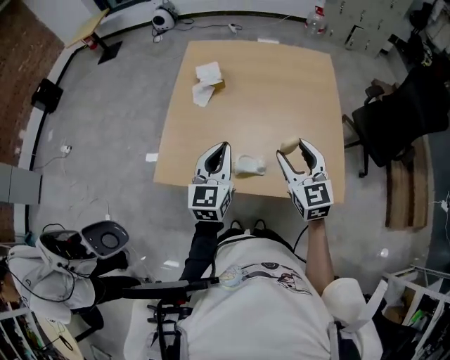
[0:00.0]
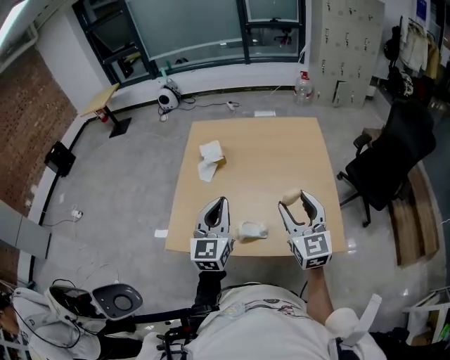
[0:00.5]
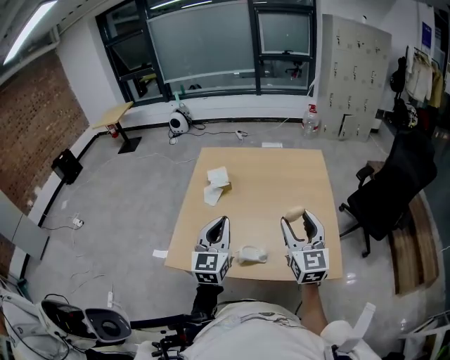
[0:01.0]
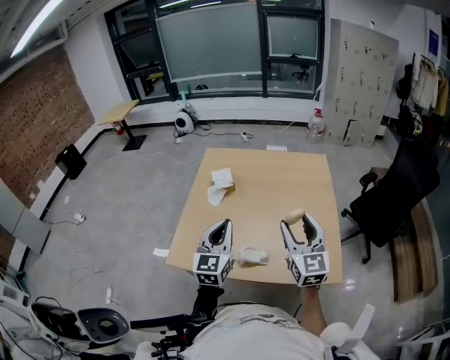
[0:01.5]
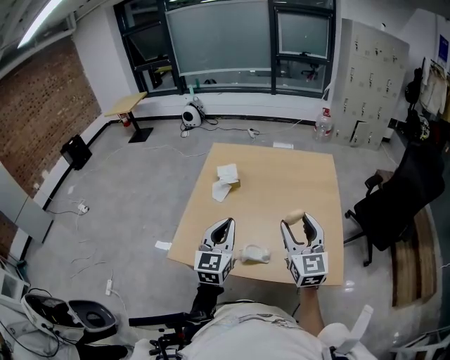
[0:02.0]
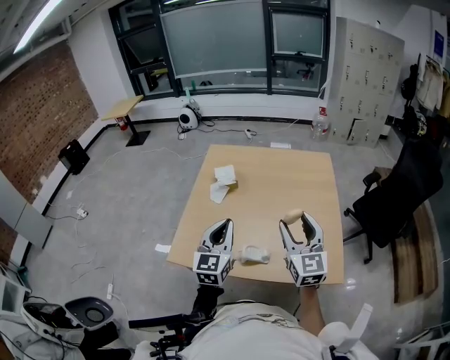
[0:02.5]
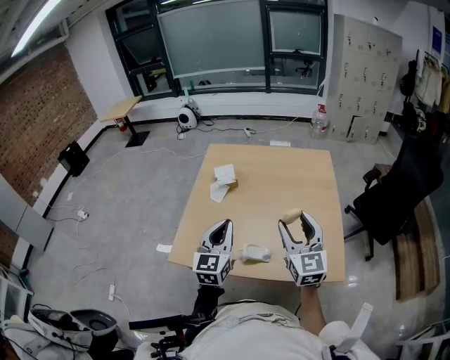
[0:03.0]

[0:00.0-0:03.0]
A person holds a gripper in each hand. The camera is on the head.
0:00.0 to 0:01.5: The left gripper moves upward, about 5 cm; the right gripper is displaced upward by some 10 cm.
0:01.5 to 0:03.0: The grippers make only small movements.

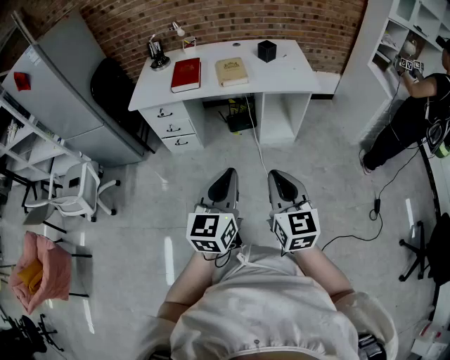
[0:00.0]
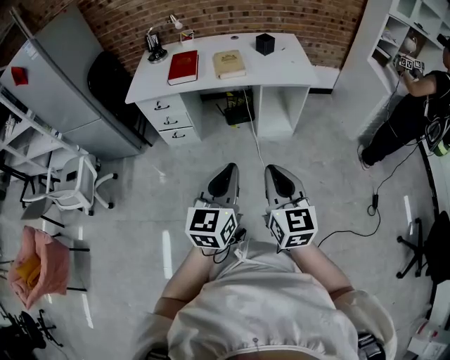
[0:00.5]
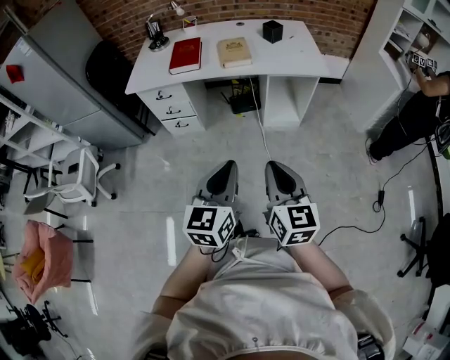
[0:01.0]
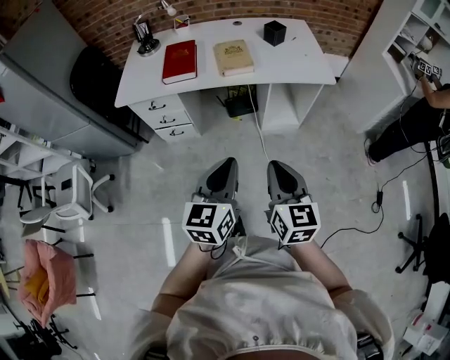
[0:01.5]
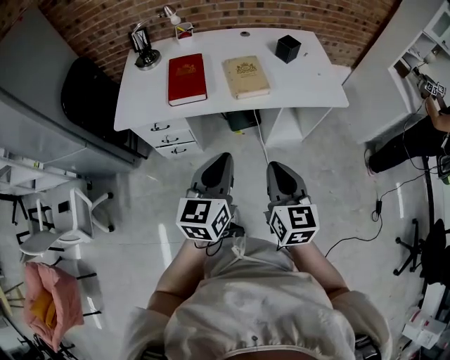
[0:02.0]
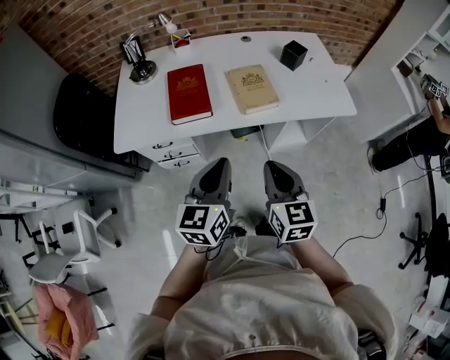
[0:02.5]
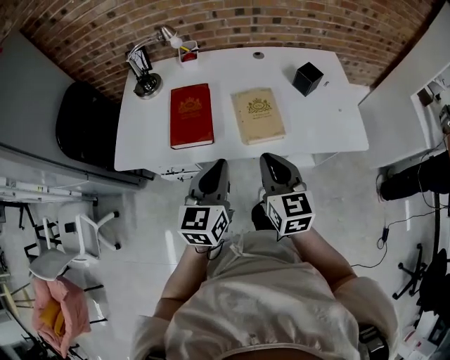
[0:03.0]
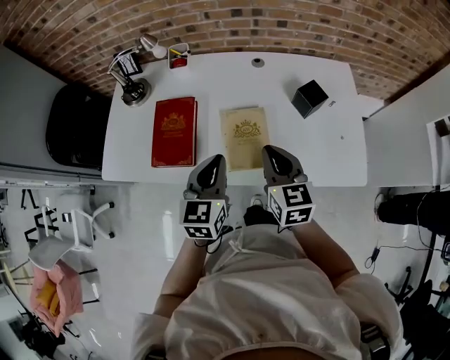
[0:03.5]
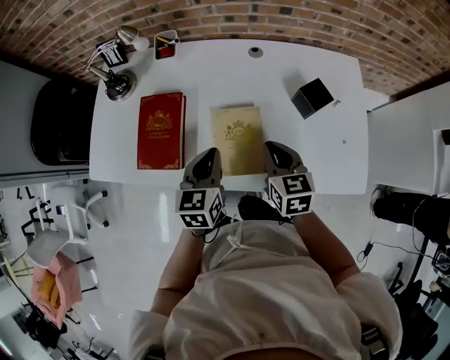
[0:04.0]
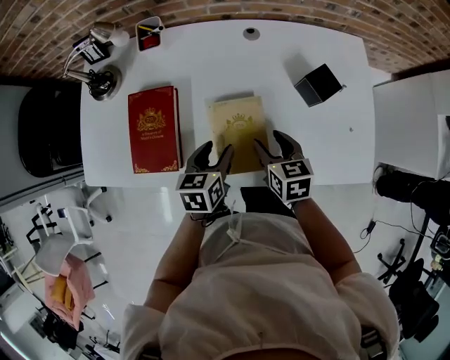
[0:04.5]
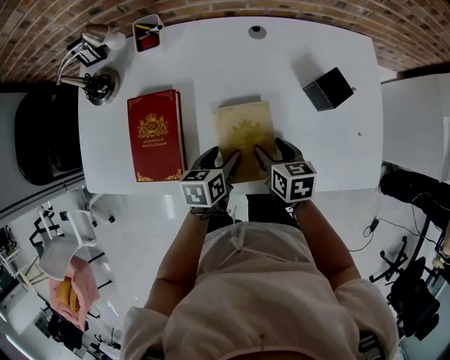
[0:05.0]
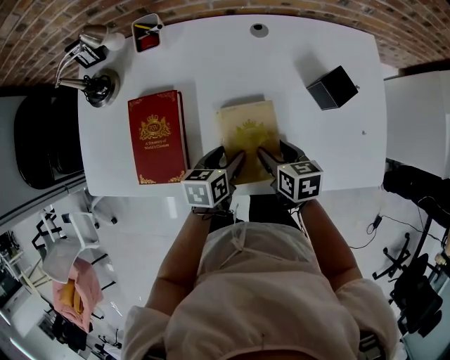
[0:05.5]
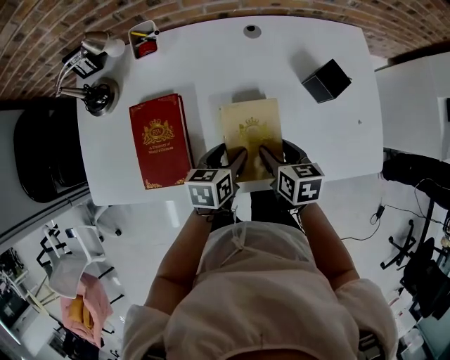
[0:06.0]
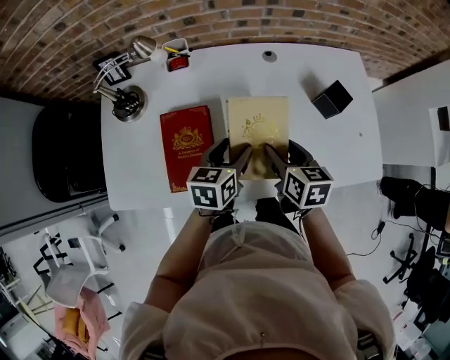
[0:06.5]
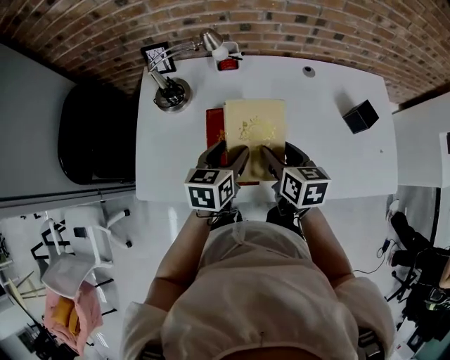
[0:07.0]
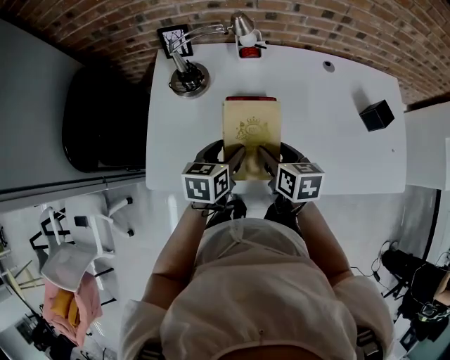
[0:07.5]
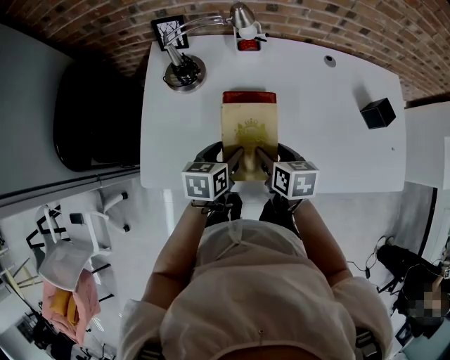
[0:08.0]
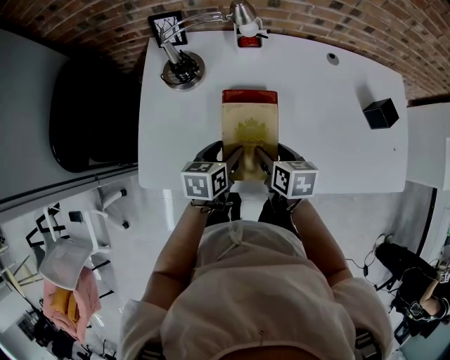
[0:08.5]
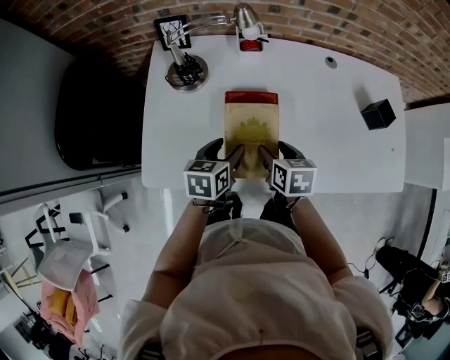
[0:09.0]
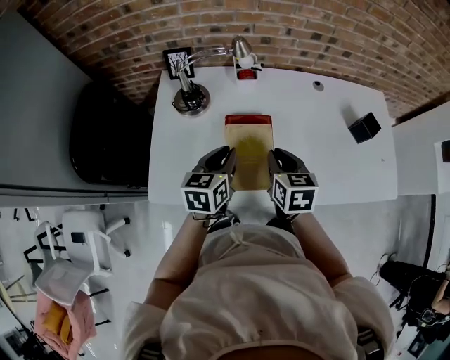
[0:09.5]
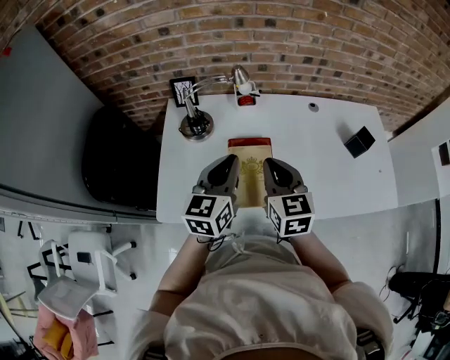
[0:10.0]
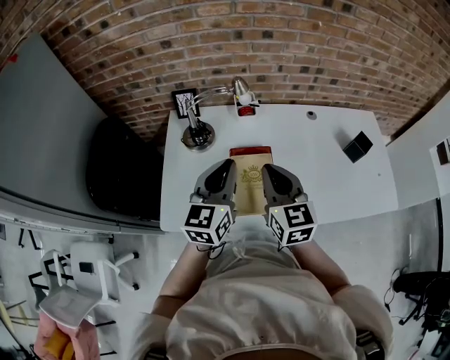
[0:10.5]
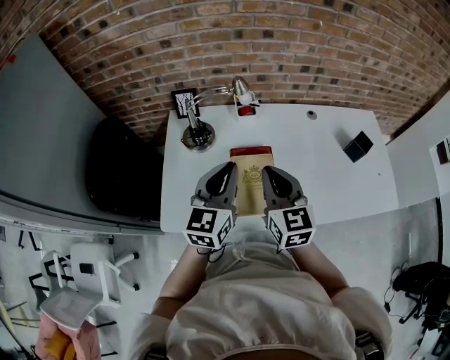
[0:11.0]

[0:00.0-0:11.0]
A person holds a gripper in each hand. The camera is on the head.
0:00.0 to 0:02.0: Both grippers move forward and to the left, roughly 30 cm.
0:02.0 to 0:03.5: Both grippers travel together forward, roughly 40 cm.
0:03.5 to 0:05.5: The two grippers go roughly 20 cm downward. The left gripper turns by roughly 40 degrees, and opens up. The right gripper rotates about 40 degrees, and opens.
0:05.5 to 0:07.5: The grippers both shift to the left by roughly 30 cm.
0:07.5 to 0:09.0: The grippers move only a little.
0:09.0 to 0:11.0: The grippers both shift upward by some 20 cm. The right gripper angles its fingers upward, by approximately 40 degrees, and closes its fingers; the left gripper tips its fingers upward by roughly 30 degrees, and closes up.

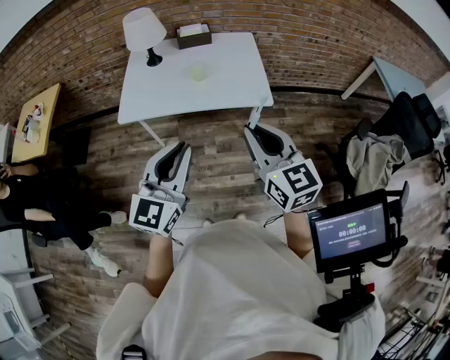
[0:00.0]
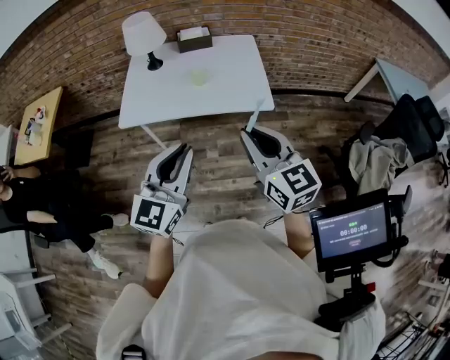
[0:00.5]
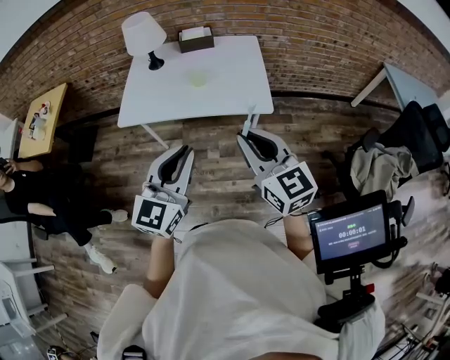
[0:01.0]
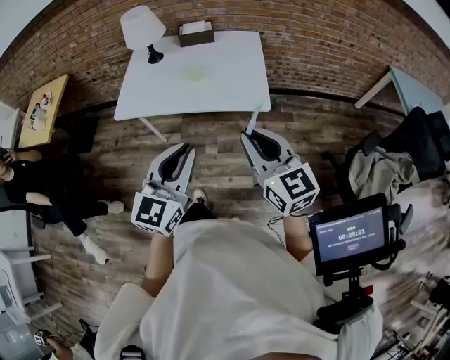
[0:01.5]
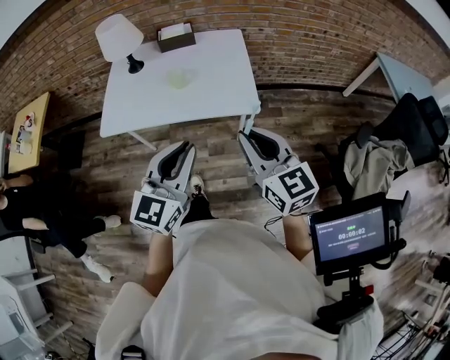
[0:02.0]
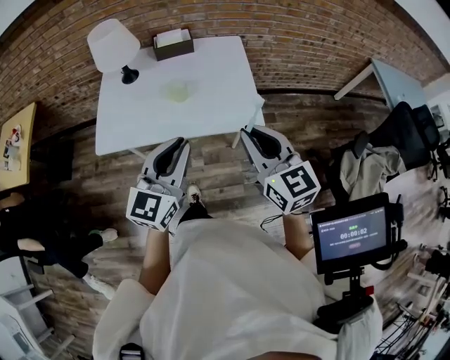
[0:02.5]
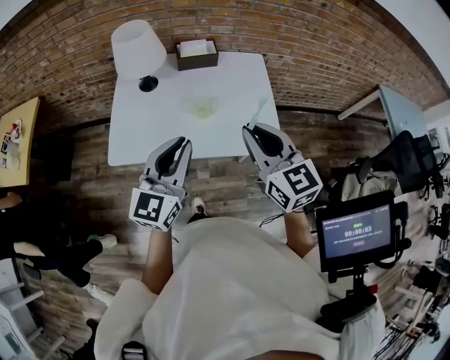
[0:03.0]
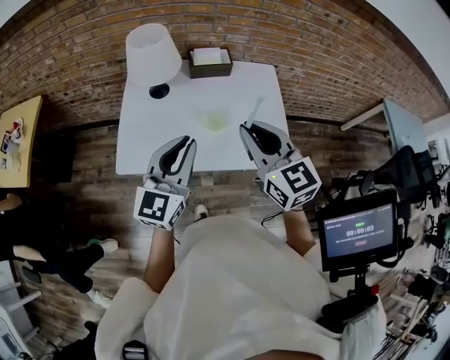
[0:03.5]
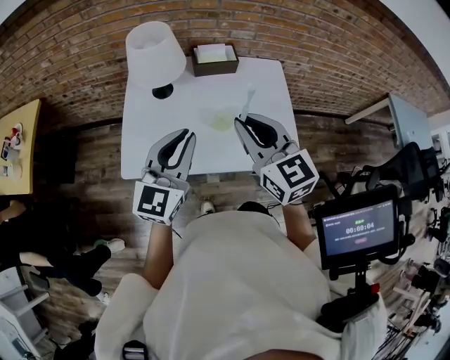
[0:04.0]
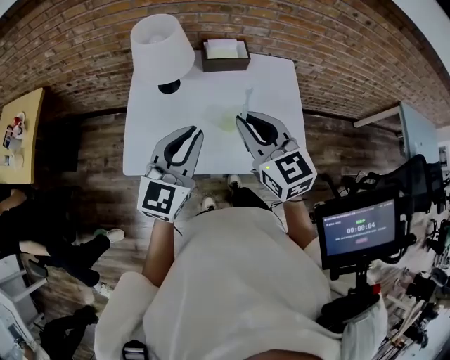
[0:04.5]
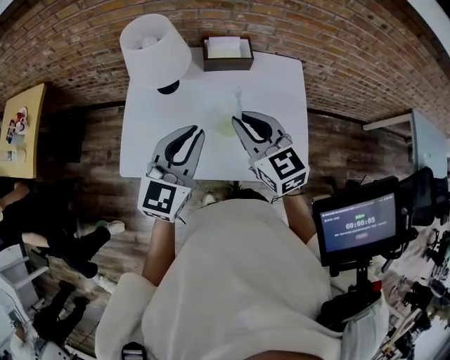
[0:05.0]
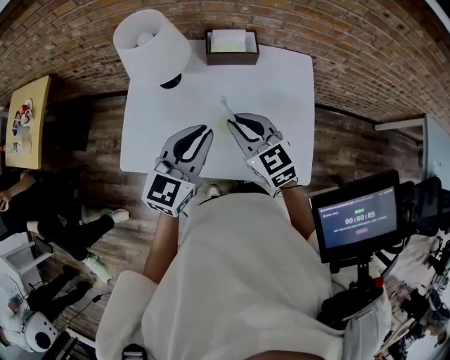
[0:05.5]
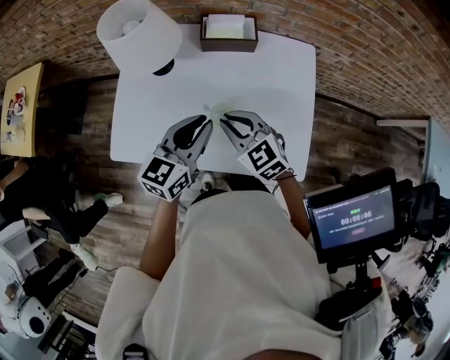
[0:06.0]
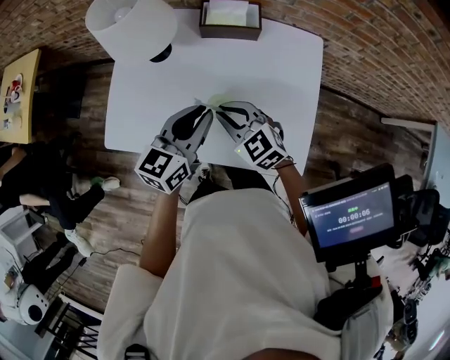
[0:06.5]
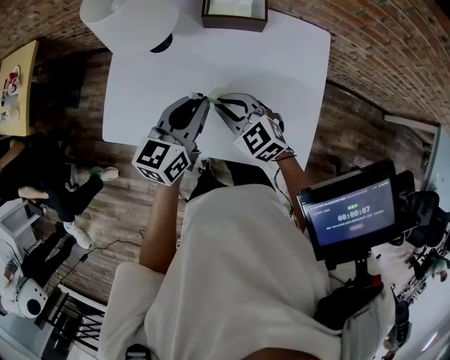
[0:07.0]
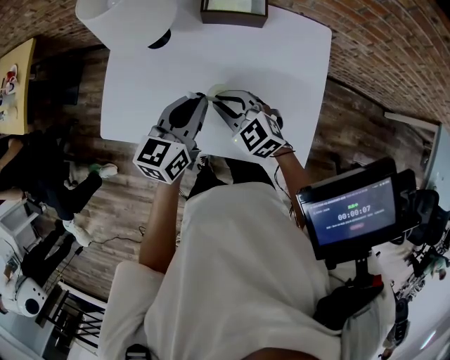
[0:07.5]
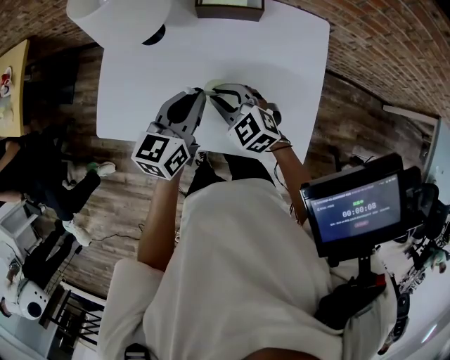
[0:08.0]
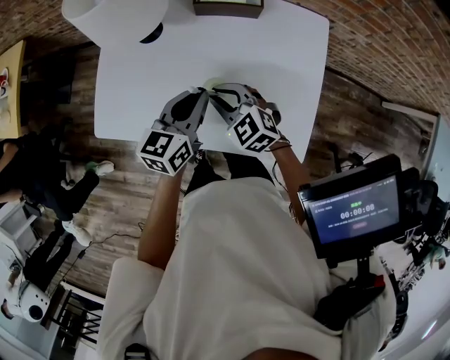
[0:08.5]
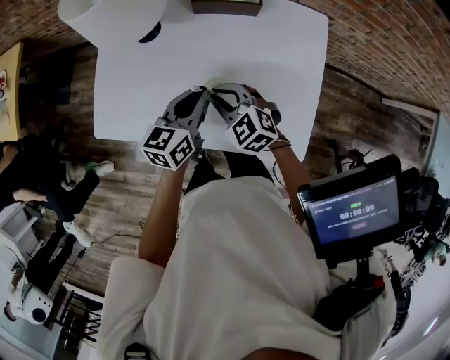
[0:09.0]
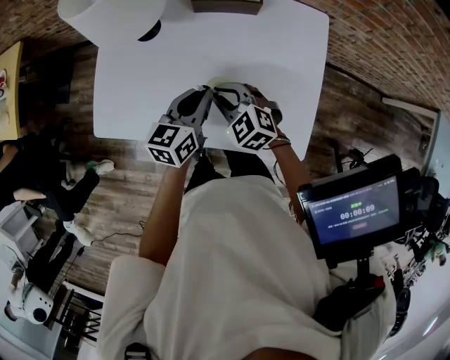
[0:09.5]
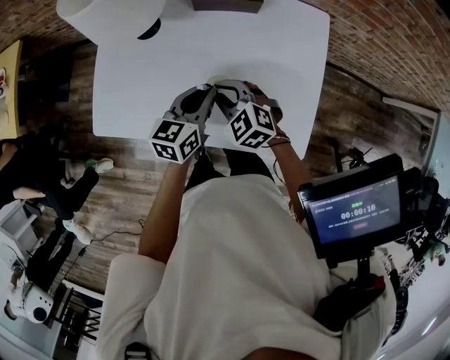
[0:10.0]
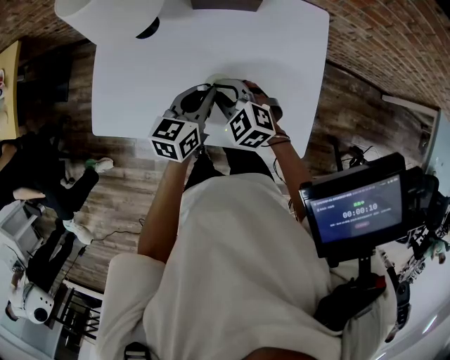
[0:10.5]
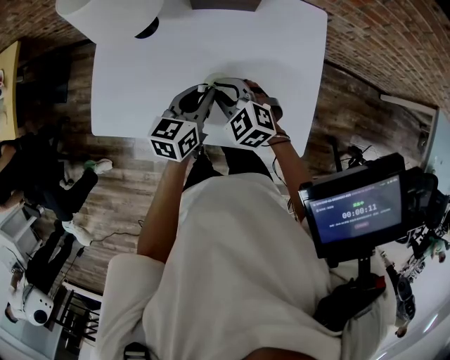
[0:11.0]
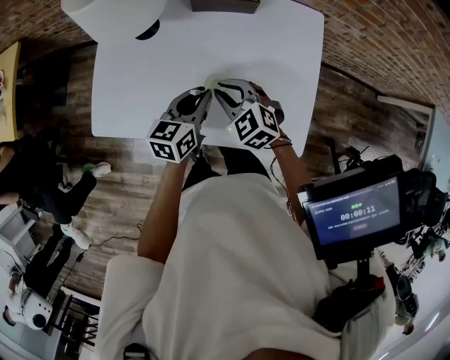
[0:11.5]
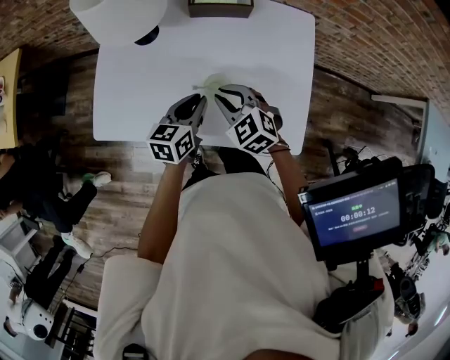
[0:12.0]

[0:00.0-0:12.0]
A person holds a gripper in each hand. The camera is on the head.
0:00.0 to 0:02.0: The grippers both shift to the right and forward by about 15 cm.
0:02.0 to 0:04.0: Both grippers travel together forward and to the left, some 35 cm.
0:04.0 to 0:06.0: The left gripper moves downward, to the right and forward, roughly 20 cm, and rotates approximately 20 degrees, while the right gripper shifts approximately 20 cm downward and forward, and changes its angle by roughly 30 degrees.
0:06.0 to 0:08.0: The grippers both shift downward by some 5 cm.
0:08.0 to 0:10.0: The left gripper moves downward, some 5 cm.
0:10.0 to 0:12.0: The grippers make only small movements.

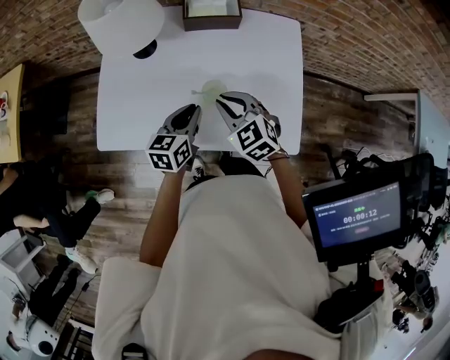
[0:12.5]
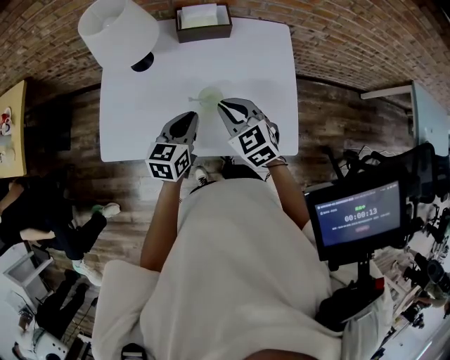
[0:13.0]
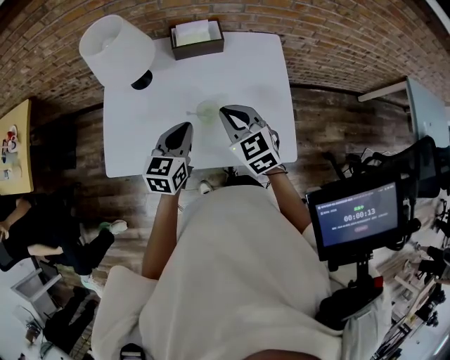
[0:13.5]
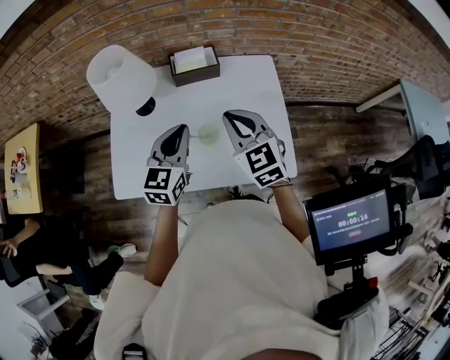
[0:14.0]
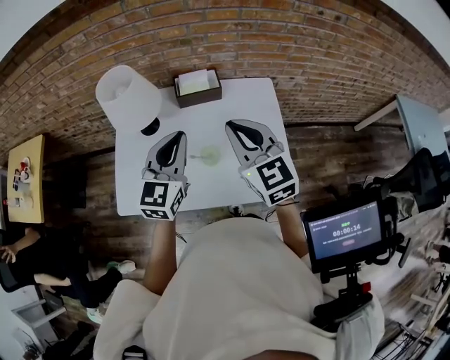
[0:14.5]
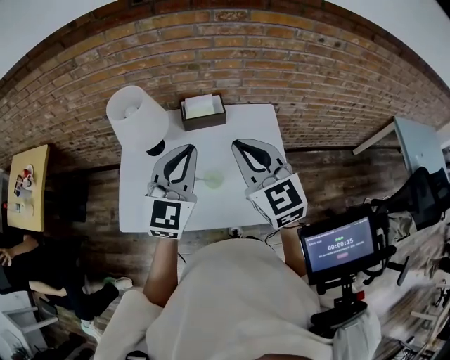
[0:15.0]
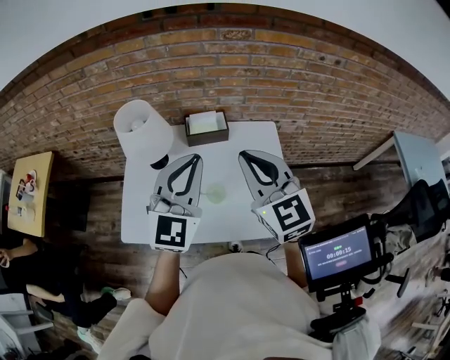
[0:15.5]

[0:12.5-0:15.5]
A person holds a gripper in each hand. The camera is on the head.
0:12.5 to 0:14.0: The grippers both shift upward by some 15 cm. The right gripper turns by approximately 20 degrees. The left gripper rotates approximately 30 degrees.
0:14.0 to 0:15.5: The two grippers go some 15 cm upward. The left gripper rotates about 30 degrees.
